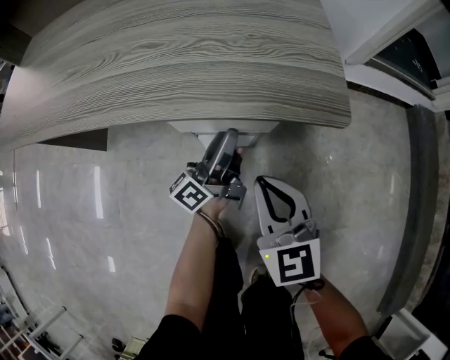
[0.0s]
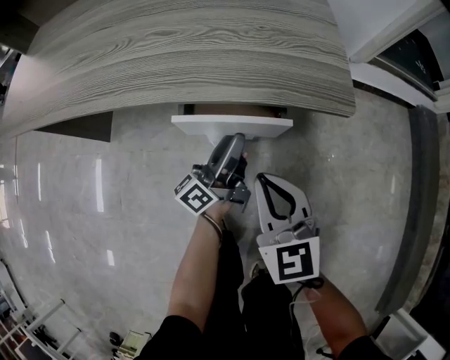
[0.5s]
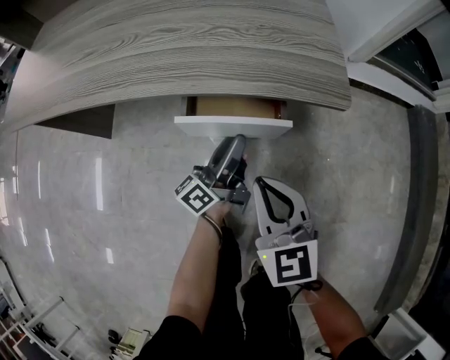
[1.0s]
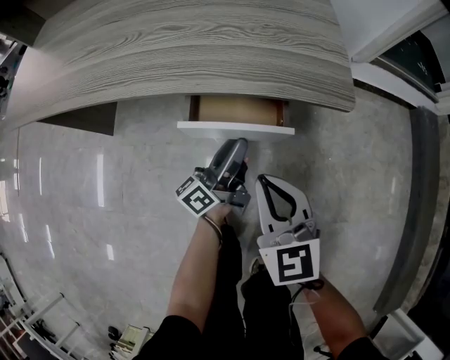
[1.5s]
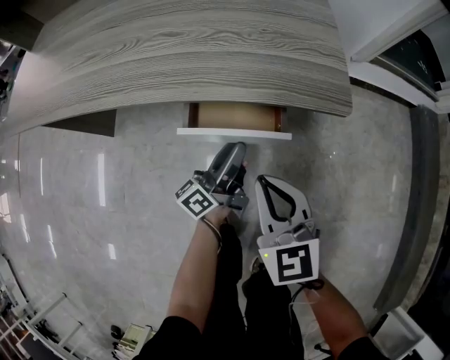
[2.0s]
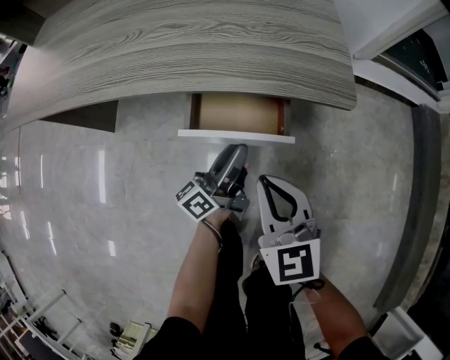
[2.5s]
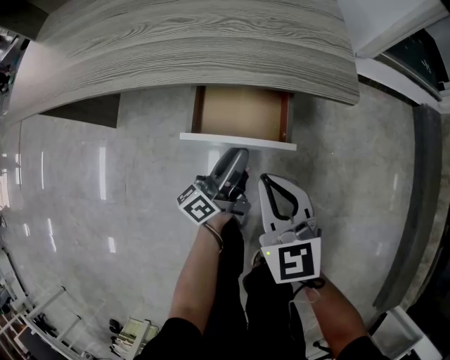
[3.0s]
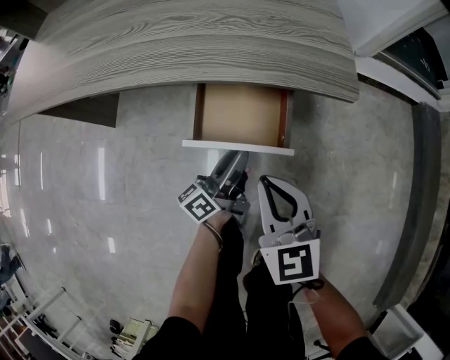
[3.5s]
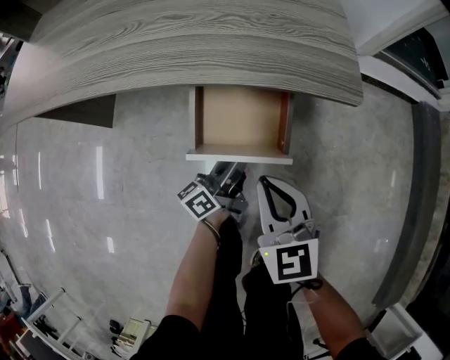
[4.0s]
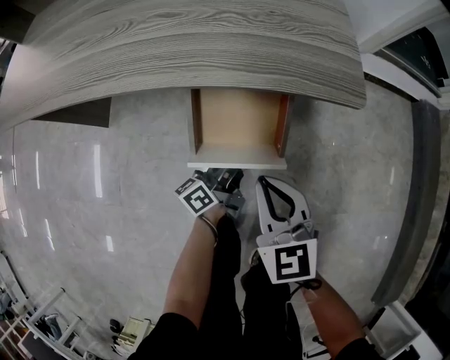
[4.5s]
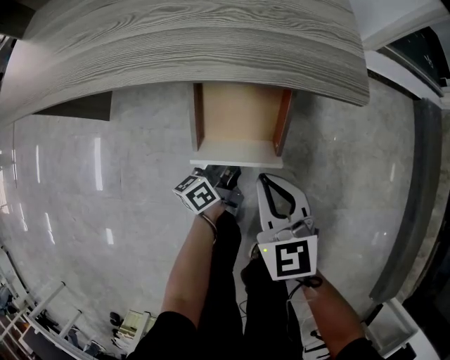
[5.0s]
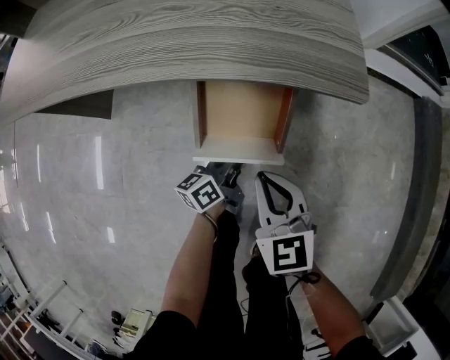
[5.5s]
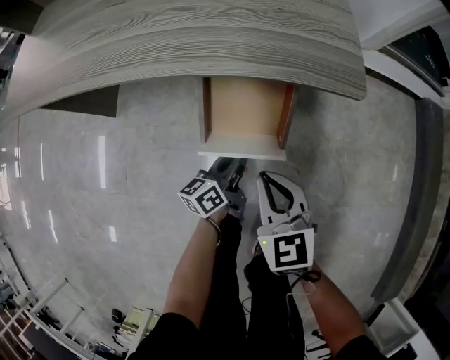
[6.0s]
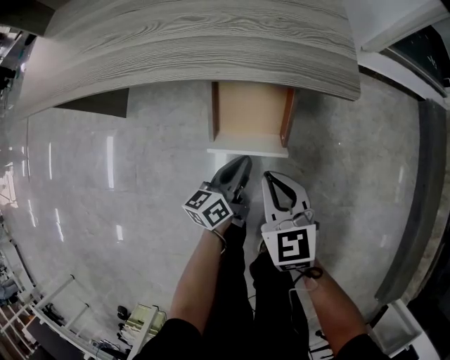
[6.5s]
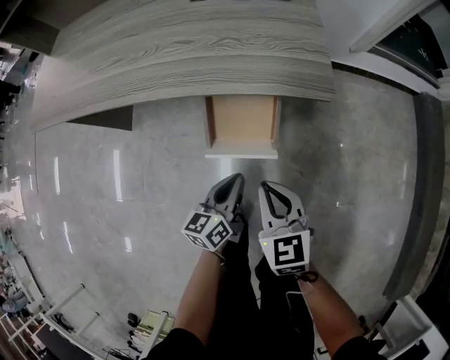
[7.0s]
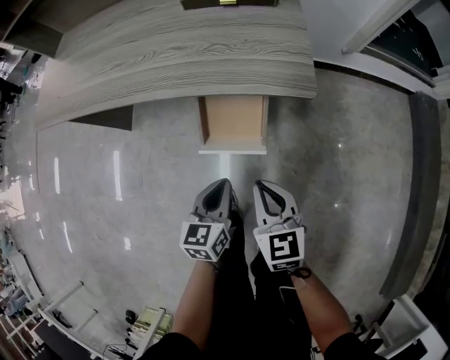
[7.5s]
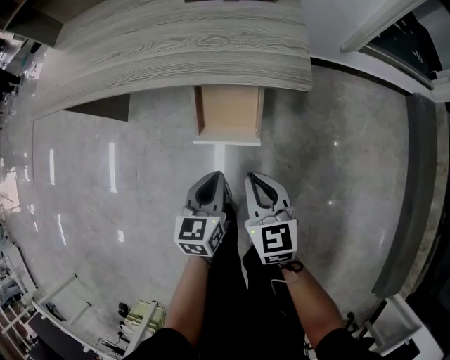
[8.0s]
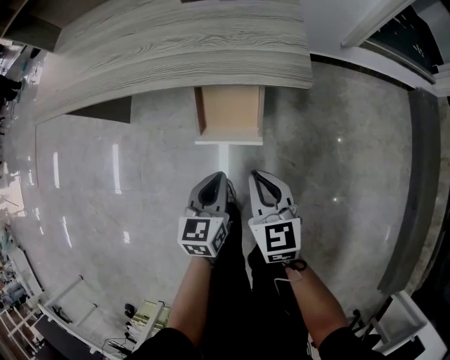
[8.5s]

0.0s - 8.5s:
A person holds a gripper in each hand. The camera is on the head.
0.0s - 2.0s: The left gripper heads backward, covering about 5 cm.
2.0s - 4.0s: The left gripper moves approximately 5 cm.
4.0s - 6.5s: The left gripper heads backward, covering about 5 cm, swivels roughly 20 degrees, and closes up.
6.5s - 8.5s: The left gripper goes approximately 15 cm upward and backward, and changes its angle by approximately 40 degrees, while the right gripper shifts roughly 5 cm upward.

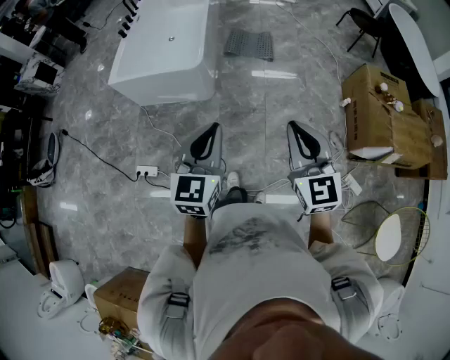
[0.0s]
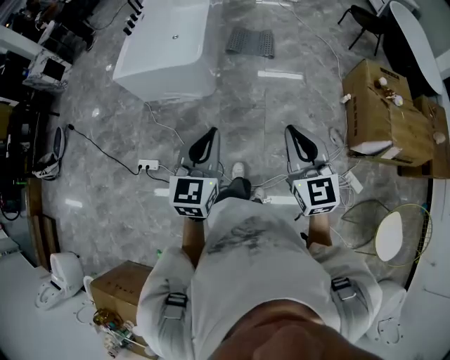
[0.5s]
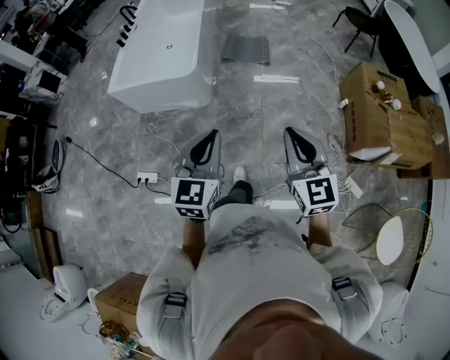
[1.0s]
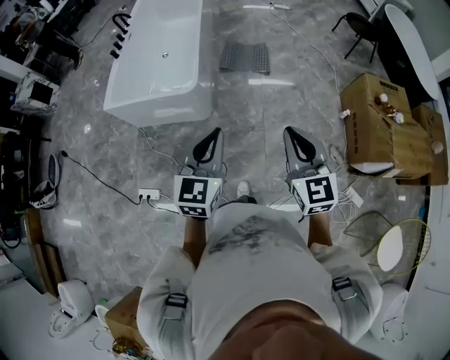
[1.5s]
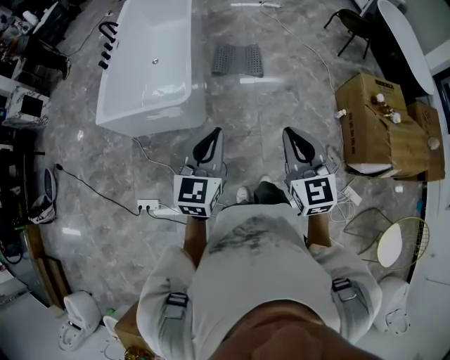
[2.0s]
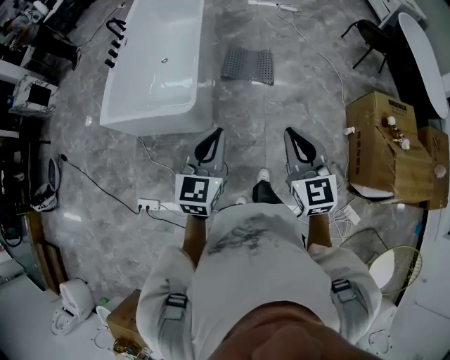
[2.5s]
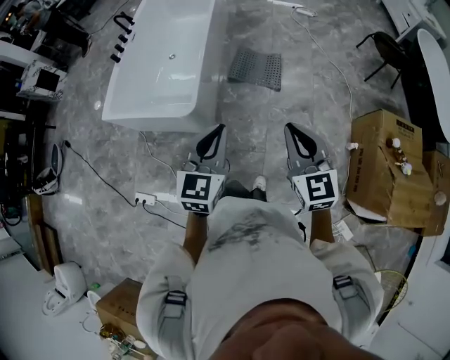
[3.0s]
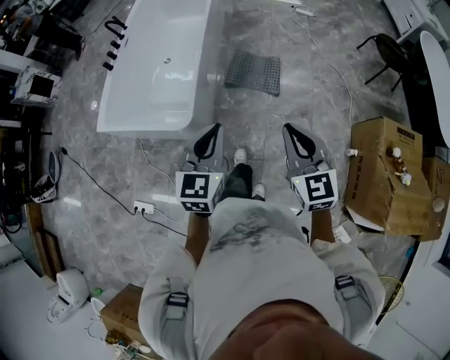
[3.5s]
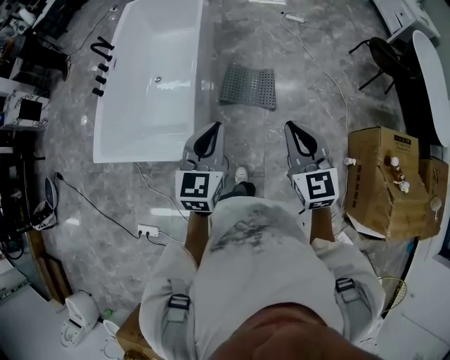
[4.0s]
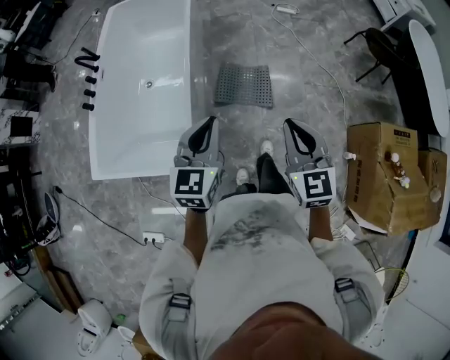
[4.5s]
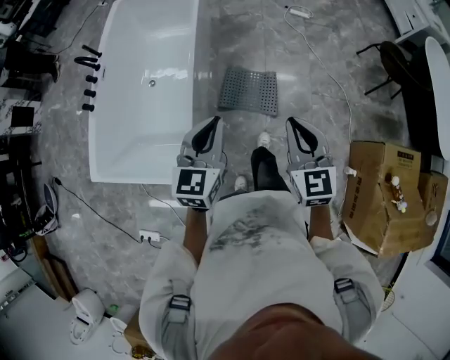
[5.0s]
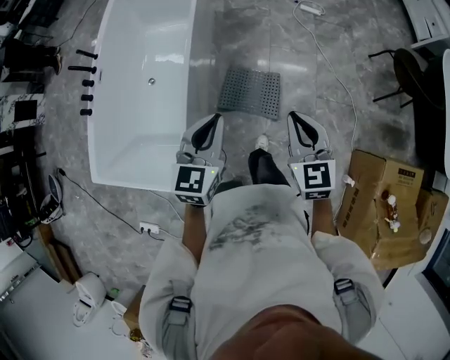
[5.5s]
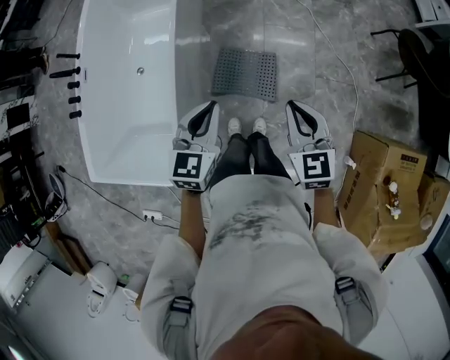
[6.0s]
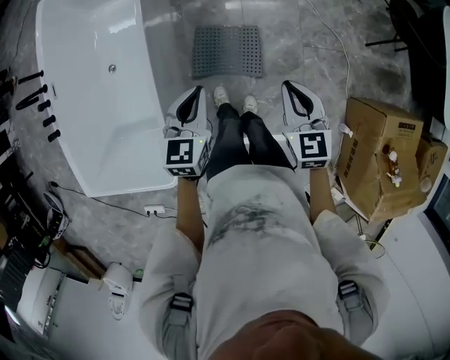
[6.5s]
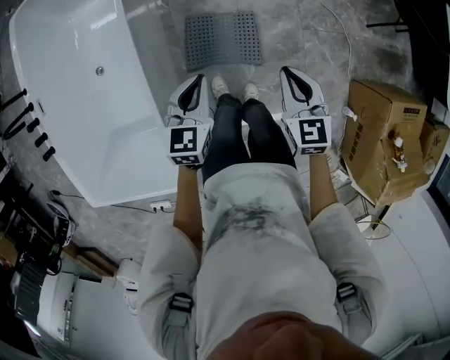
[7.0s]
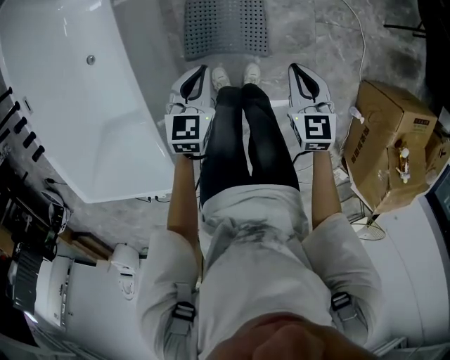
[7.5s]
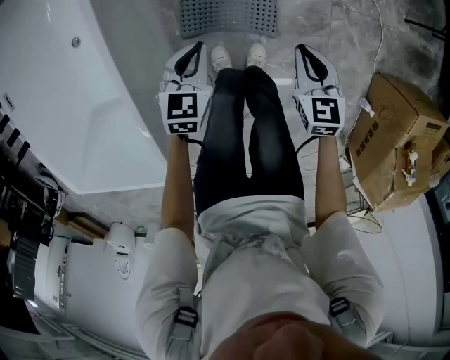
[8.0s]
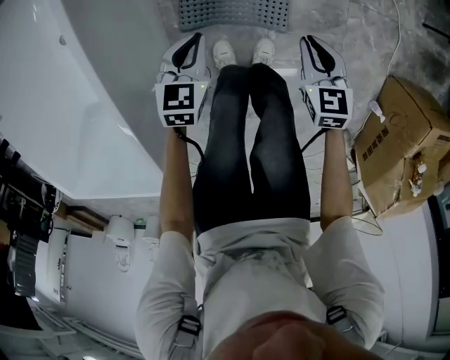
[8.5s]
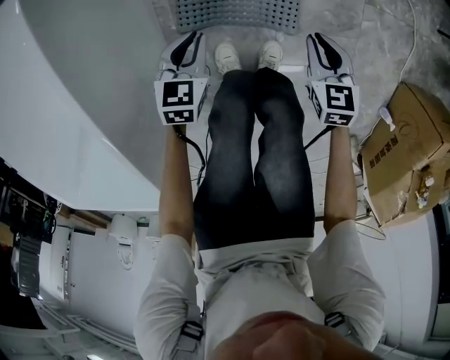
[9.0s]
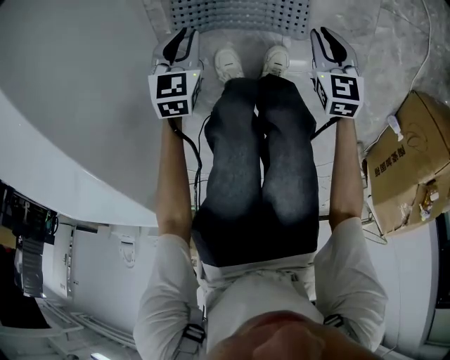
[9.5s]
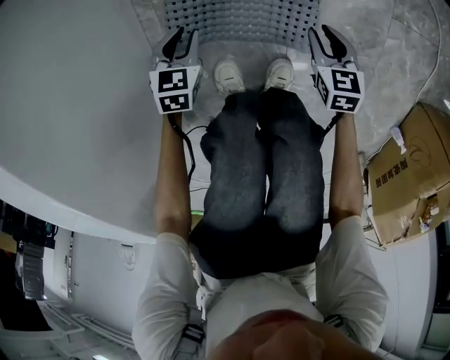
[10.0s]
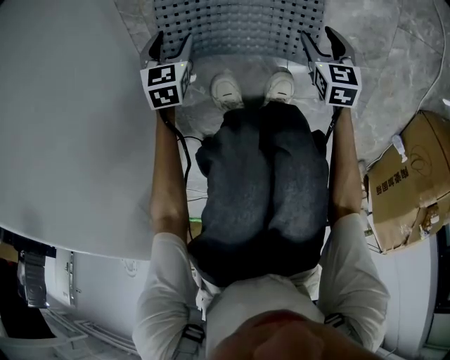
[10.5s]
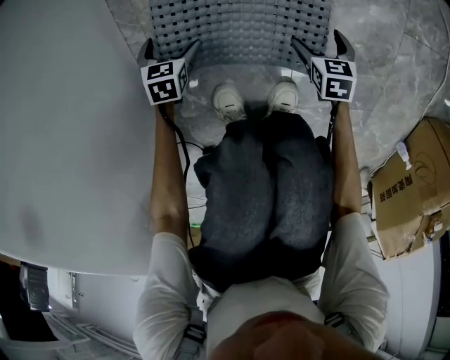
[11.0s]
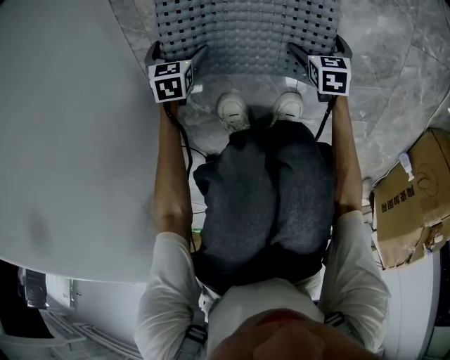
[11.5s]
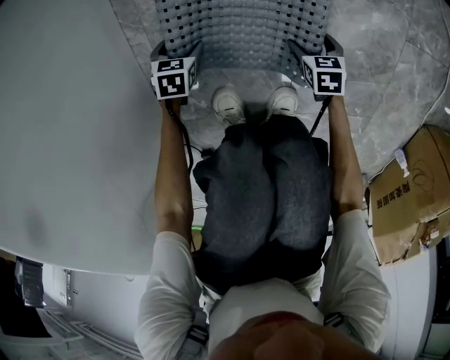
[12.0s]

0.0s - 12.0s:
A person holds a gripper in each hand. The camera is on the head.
0.0s - 2.0s: The two grippers go about 20 cm forward.
2.0s - 4.0s: Both grippers are carried forward, approximately 40 cm.
4.0s - 6.0s: Both grippers move forward, roughly 40 cm.
6.0s - 8.0s: The two grippers go about 40 cm downward. The right gripper swivels about 20 degrees.
8.0s - 10.0s: The two grippers go roughly 40 cm downward.
10.0s - 12.0s: Both grippers move downward, some 20 cm. The right gripper opens, while the left gripper opens its fingers.

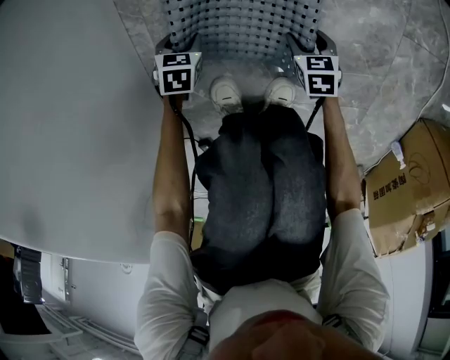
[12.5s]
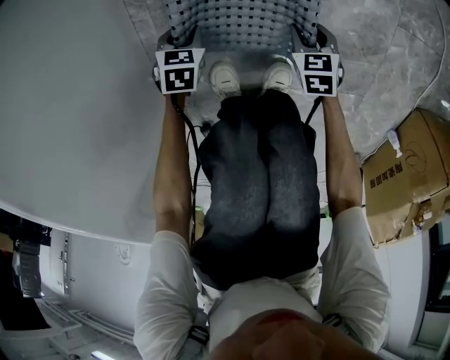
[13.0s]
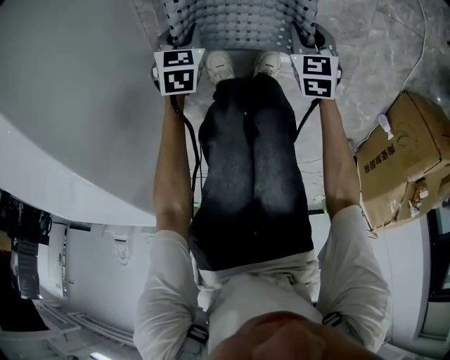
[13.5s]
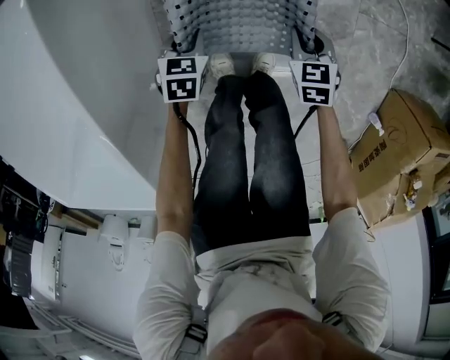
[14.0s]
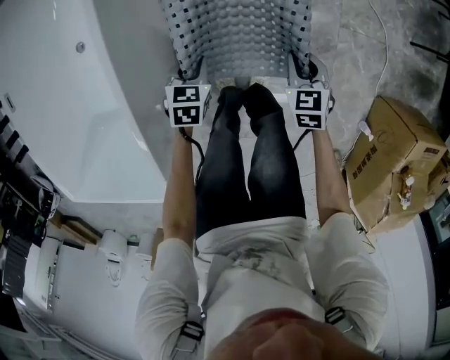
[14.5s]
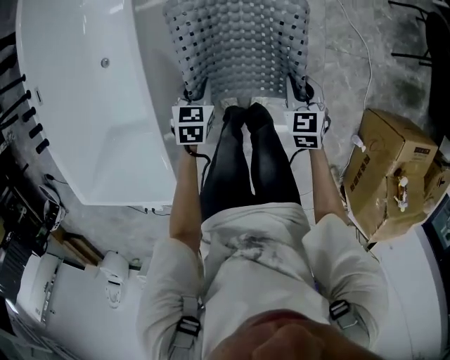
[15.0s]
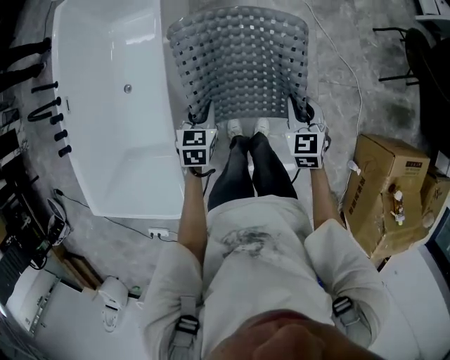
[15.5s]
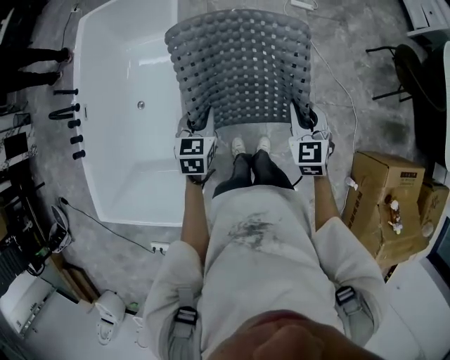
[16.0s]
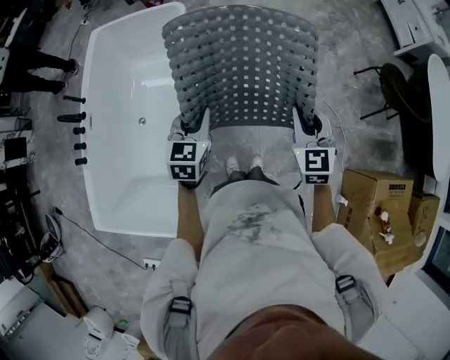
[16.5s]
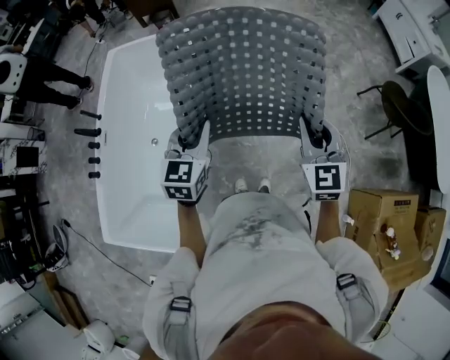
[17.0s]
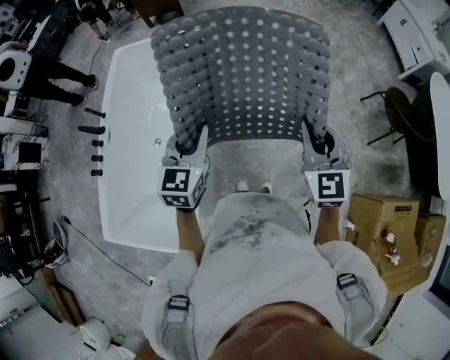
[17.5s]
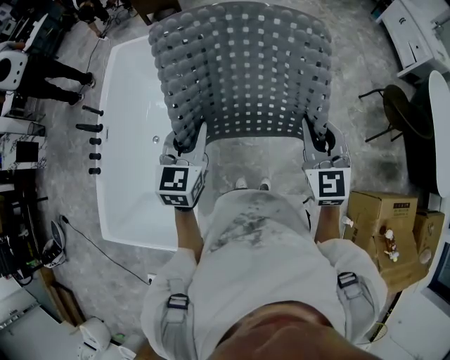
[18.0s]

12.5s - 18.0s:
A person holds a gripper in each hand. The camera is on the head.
12.5s - 14.5s: Both grippers move upward, about 50 cm. The right gripper changes its angle by some 20 degrees.
14.5s - 16.0s: Both grippers travel together upward, some 40 cm. The right gripper changes its angle by some 20 degrees. The left gripper changes its angle by roughly 20 degrees.
16.0s - 18.0s: The grippers both shift upward by some 25 cm. The left gripper changes its angle by approximately 20 degrees.

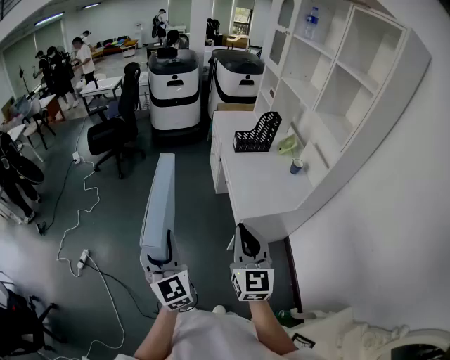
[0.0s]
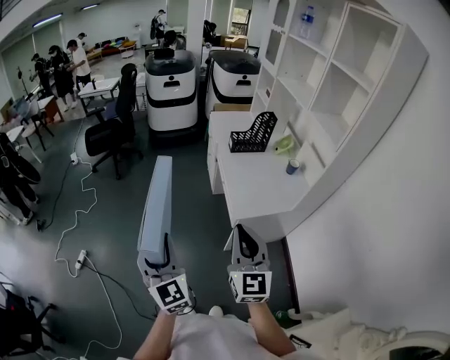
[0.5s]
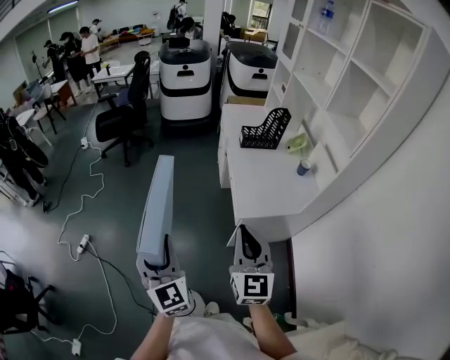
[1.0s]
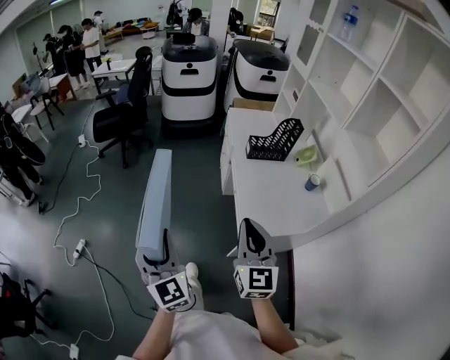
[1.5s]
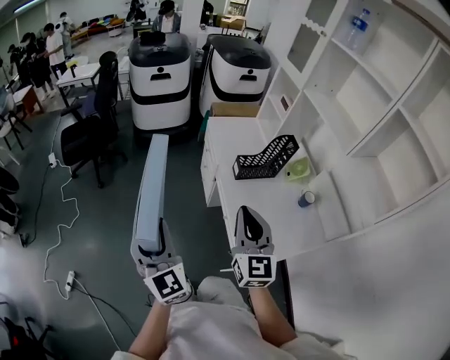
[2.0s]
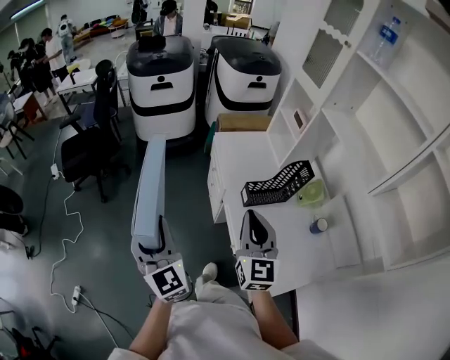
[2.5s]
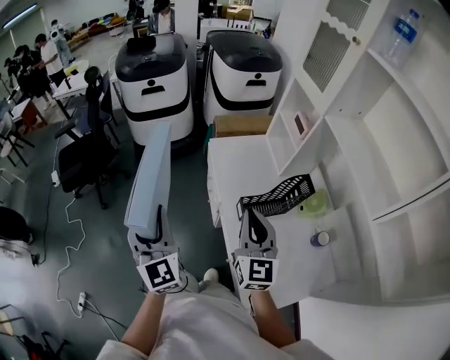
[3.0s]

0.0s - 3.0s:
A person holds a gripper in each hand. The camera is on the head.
0.0s - 1.5s: Both grippers travel together forward, roughly 15 cm.
1.5s - 3.0s: The two grippers travel together, forward, some 50 cm.
